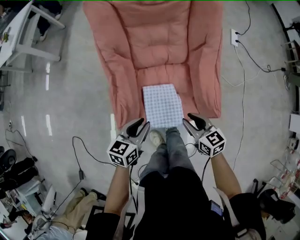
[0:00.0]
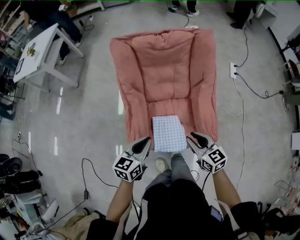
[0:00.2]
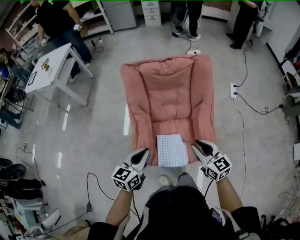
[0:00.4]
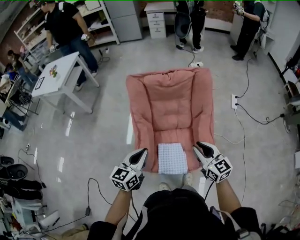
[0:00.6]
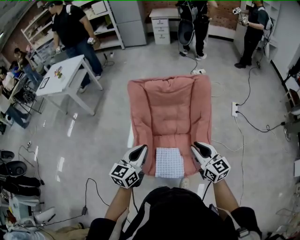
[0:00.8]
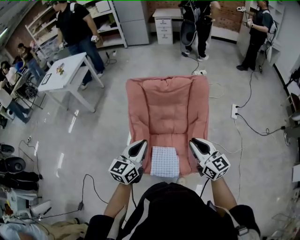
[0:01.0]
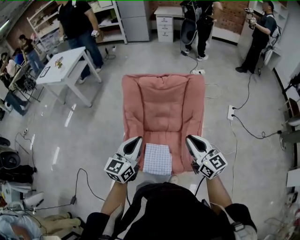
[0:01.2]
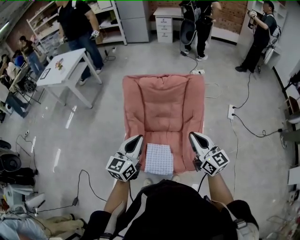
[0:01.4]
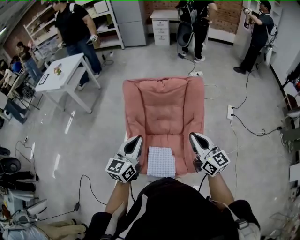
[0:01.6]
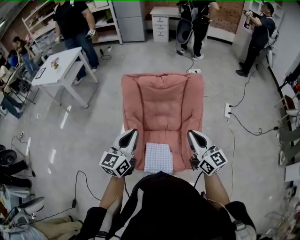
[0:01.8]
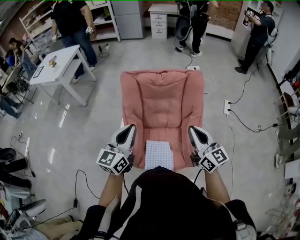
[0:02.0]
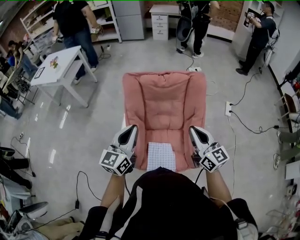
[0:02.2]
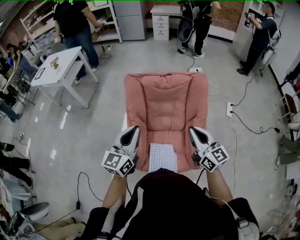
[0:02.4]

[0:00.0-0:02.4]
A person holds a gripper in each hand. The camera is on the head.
0:00.0 to 0:01.2: Both grippers move upward, approximately 30 cm. The right gripper tilts its fingers some 30 degrees upward. The left gripper swivels some 40 degrees.
0:01.2 to 0:02.4: The left gripper travels to the left by about 5 cm. Meanwhile the right gripper shifts by approximately 5 cm.

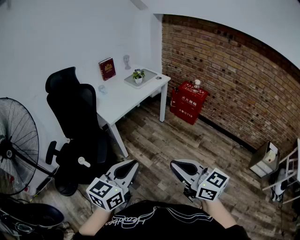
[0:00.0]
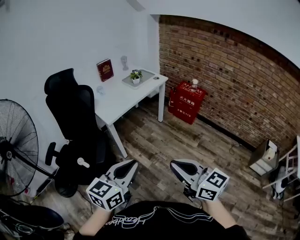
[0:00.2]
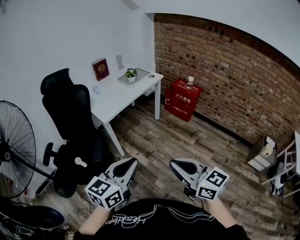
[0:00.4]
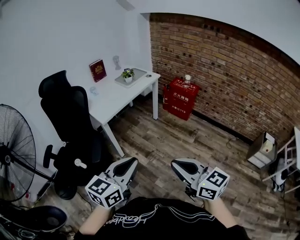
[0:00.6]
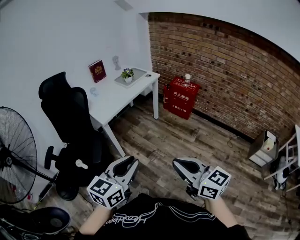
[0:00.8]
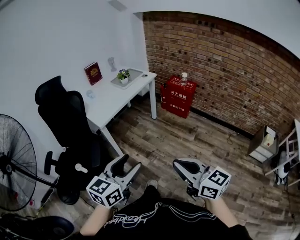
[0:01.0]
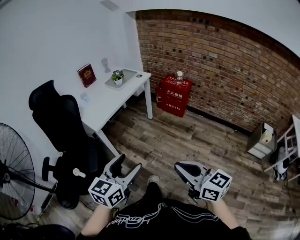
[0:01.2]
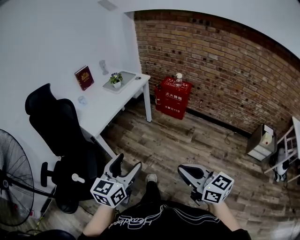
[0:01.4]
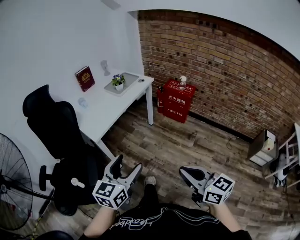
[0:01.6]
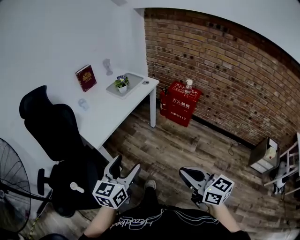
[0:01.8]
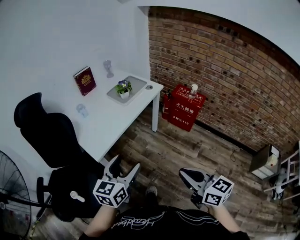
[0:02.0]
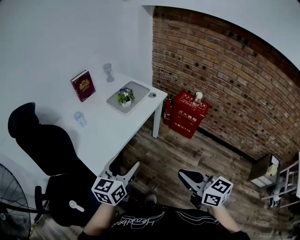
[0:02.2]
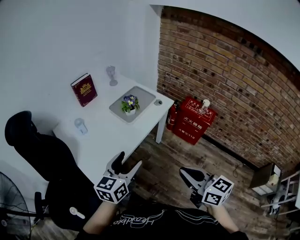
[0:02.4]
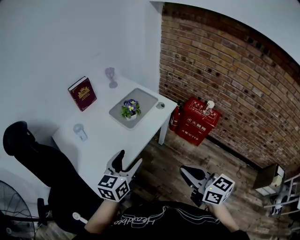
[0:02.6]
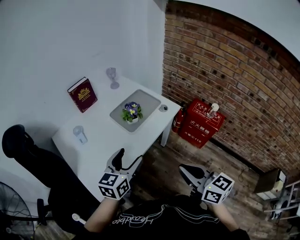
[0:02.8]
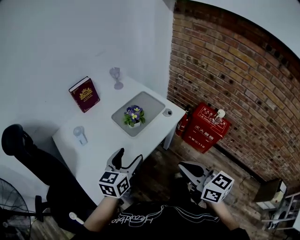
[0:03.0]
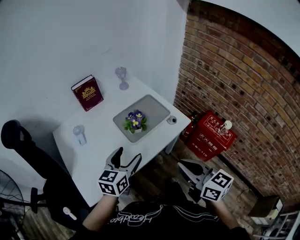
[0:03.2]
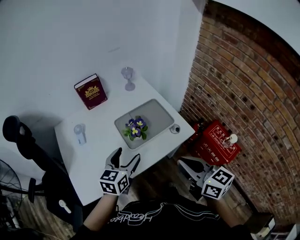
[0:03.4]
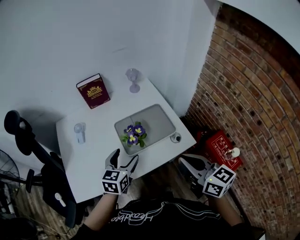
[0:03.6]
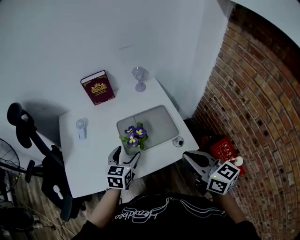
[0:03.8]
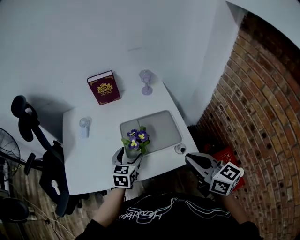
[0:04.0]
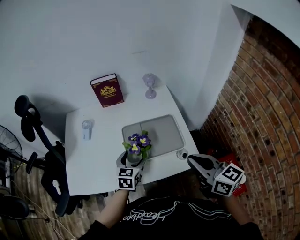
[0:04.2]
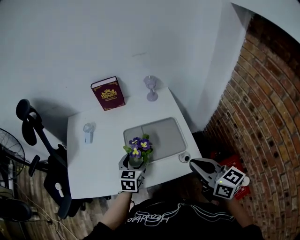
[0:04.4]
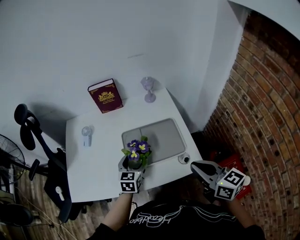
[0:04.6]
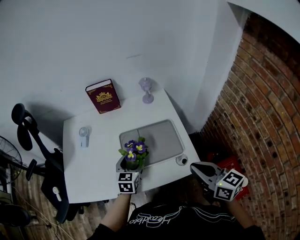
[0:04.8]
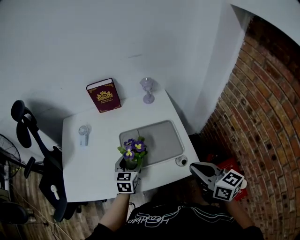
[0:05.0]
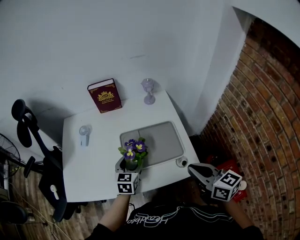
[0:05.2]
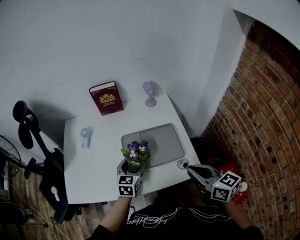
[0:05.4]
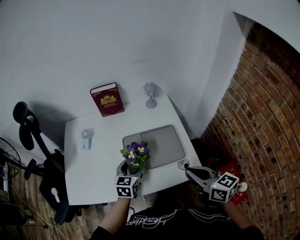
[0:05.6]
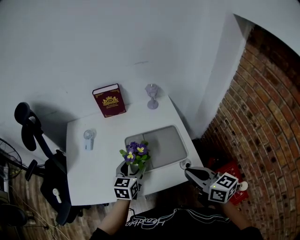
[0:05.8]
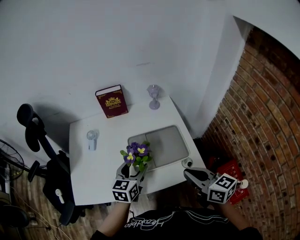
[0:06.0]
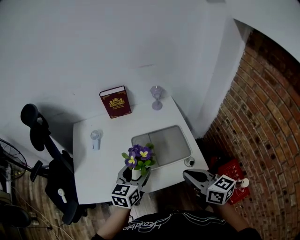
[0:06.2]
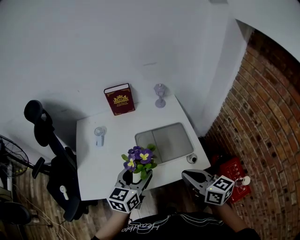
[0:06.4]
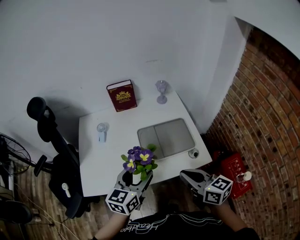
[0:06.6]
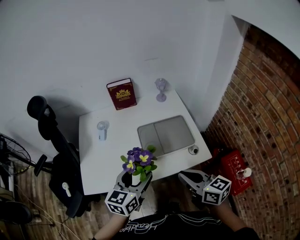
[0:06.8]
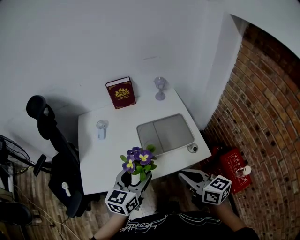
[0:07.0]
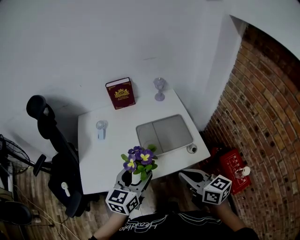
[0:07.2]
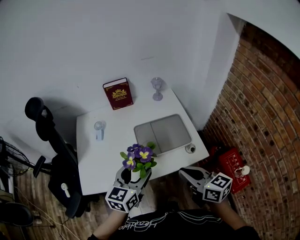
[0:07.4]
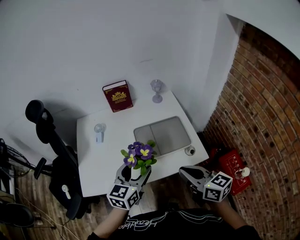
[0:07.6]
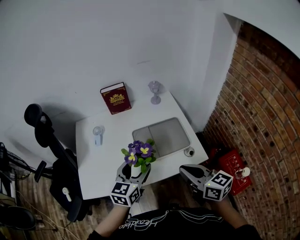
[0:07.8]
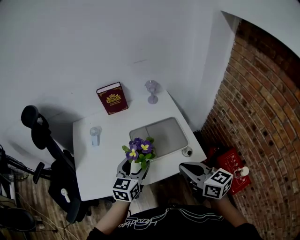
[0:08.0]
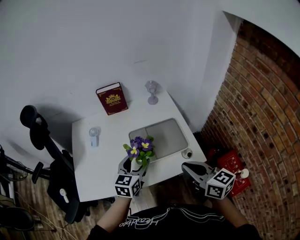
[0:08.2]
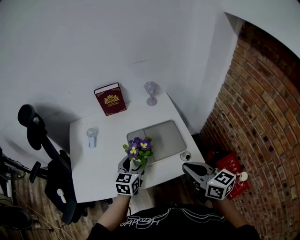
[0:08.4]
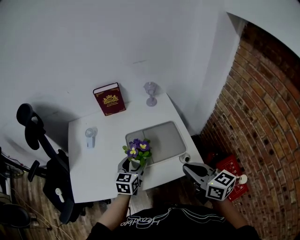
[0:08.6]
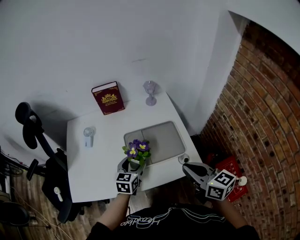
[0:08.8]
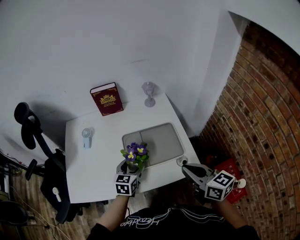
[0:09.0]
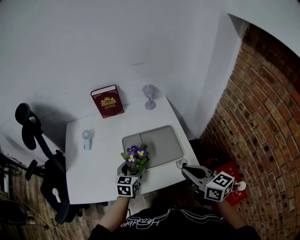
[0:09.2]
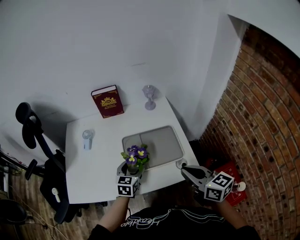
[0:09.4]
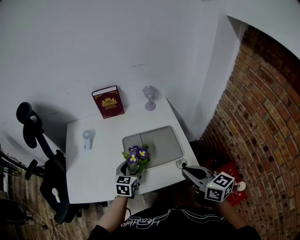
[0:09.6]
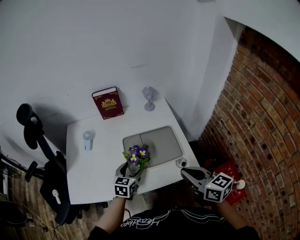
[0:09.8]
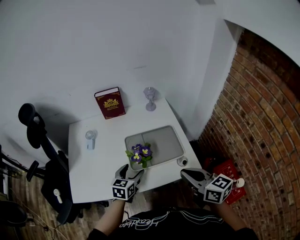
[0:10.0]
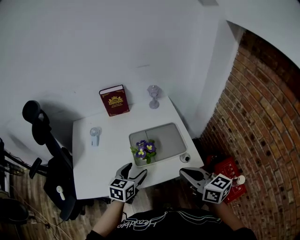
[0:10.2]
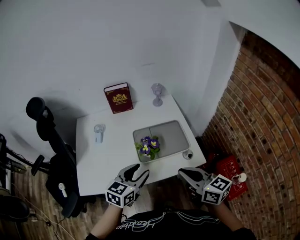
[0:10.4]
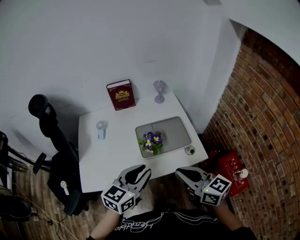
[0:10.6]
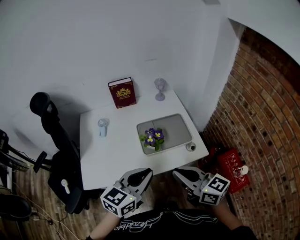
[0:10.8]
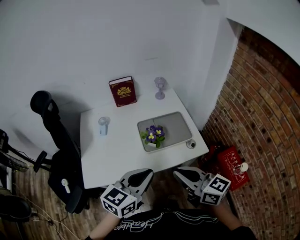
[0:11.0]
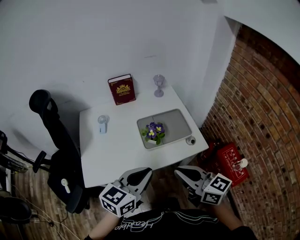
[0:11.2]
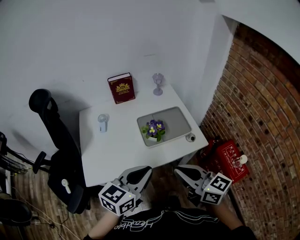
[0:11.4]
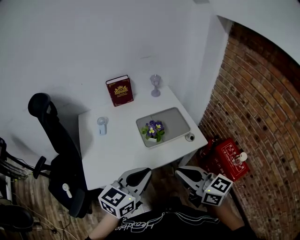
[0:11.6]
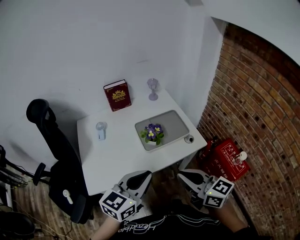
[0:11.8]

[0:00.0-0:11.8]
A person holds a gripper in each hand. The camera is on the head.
0:00.0 to 0:01.4: The right gripper is displaced to the right and downward by roughly 10 cm, while the left gripper heads forward, covering some 10 cm, and opens.
0:01.4 to 0:03.0: Both grippers are carried forward, some 60 cm.
0:03.0 to 0:04.4: The left gripper changes place by some 25 cm, and changes its angle by some 40 degrees, while the right gripper moves about 30 cm, and swivels approximately 30 degrees.
0:04.4 to 0:06.0: The left gripper goes roughly 10 cm upward.
0:06.0 to 0:07.4: The left gripper goes some 15 cm backward and upward. The right gripper goes about 10 cm to the left and backward.
0:07.4 to 0:08.8: The right gripper heads to the right and forward, covering some 10 cm. Meanwhile the left gripper shifts roughly 20 cm downward and forward.
0:08.8 to 0:10.4: The right gripper travels to the left and backward by roughly 10 cm; the left gripper is displaced upward and backward by some 15 cm.
0:10.4 to 0:11.8: The left gripper travels backward and upward by some 15 cm, and closes. The right gripper moves backward and to the left, about 10 cm.

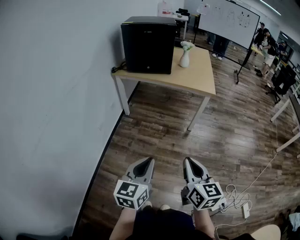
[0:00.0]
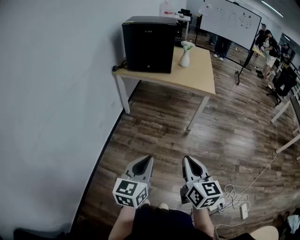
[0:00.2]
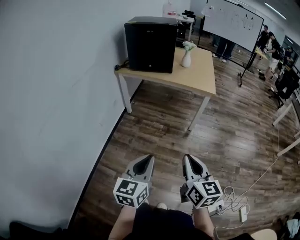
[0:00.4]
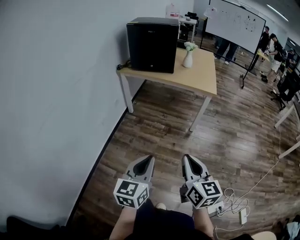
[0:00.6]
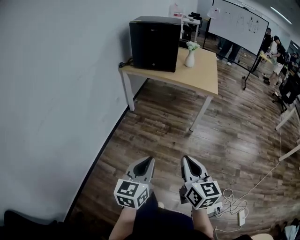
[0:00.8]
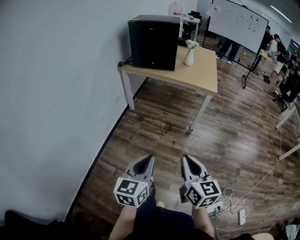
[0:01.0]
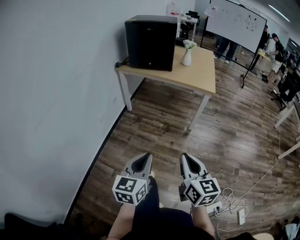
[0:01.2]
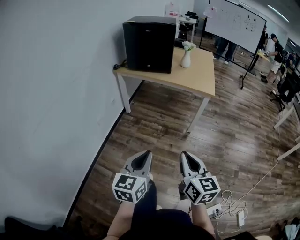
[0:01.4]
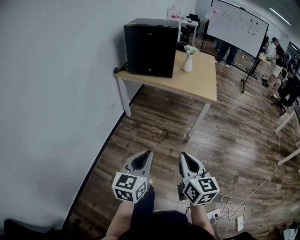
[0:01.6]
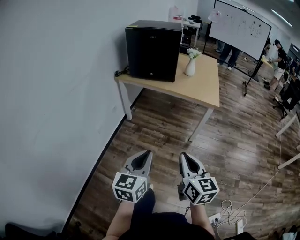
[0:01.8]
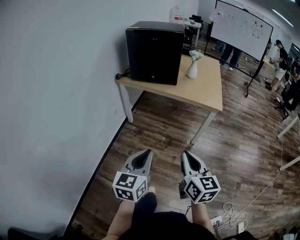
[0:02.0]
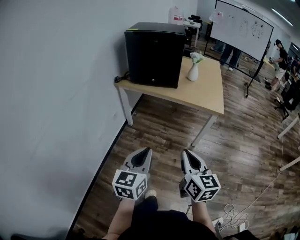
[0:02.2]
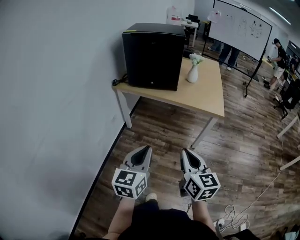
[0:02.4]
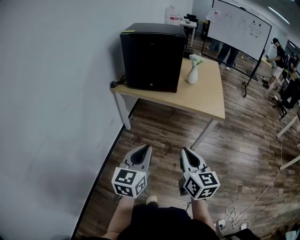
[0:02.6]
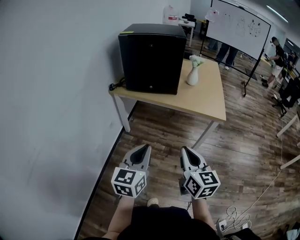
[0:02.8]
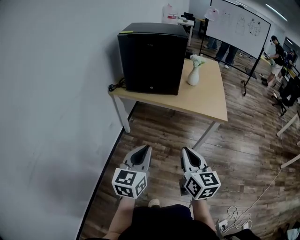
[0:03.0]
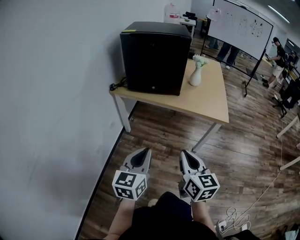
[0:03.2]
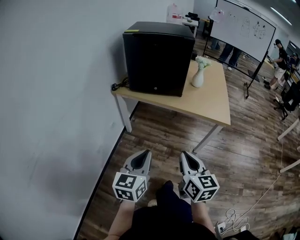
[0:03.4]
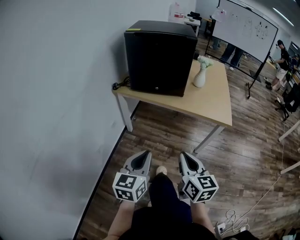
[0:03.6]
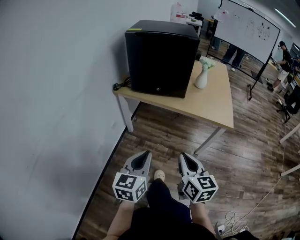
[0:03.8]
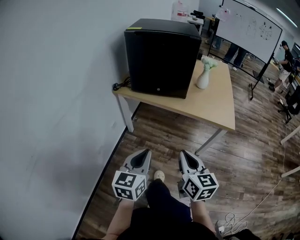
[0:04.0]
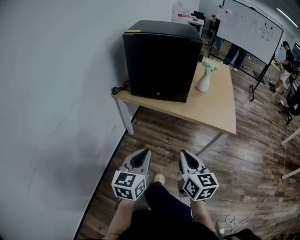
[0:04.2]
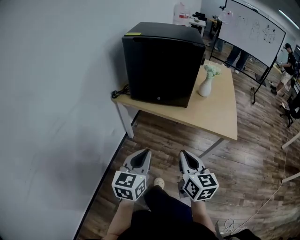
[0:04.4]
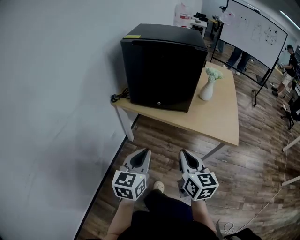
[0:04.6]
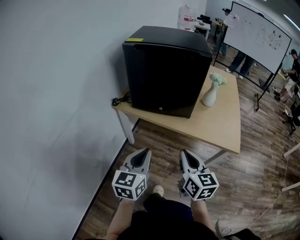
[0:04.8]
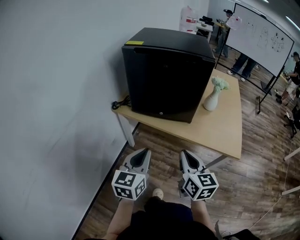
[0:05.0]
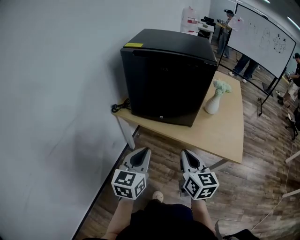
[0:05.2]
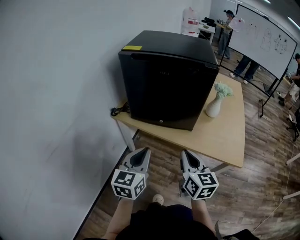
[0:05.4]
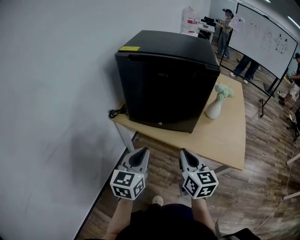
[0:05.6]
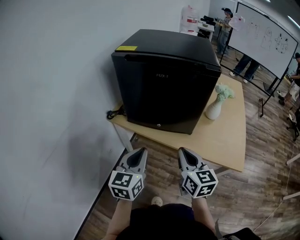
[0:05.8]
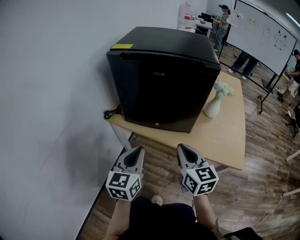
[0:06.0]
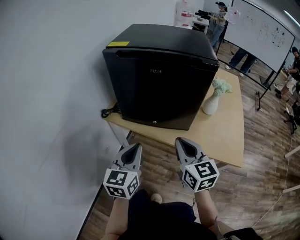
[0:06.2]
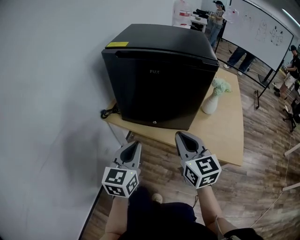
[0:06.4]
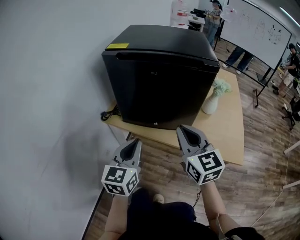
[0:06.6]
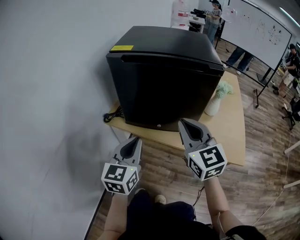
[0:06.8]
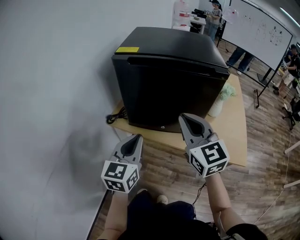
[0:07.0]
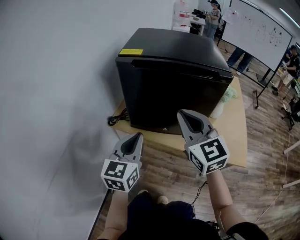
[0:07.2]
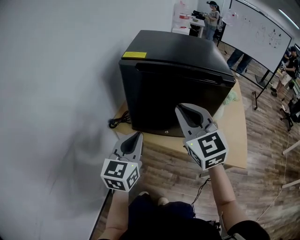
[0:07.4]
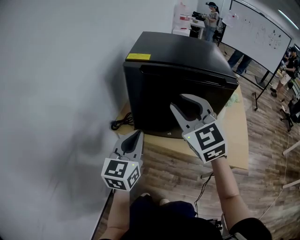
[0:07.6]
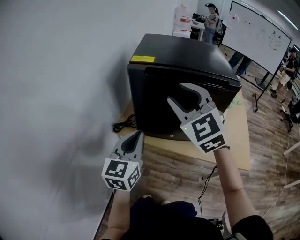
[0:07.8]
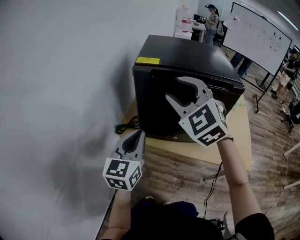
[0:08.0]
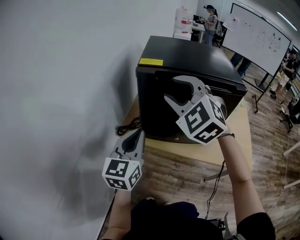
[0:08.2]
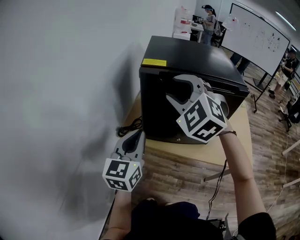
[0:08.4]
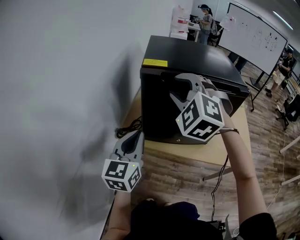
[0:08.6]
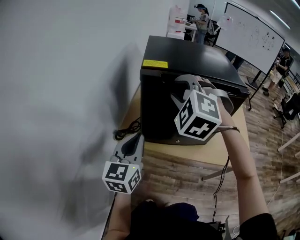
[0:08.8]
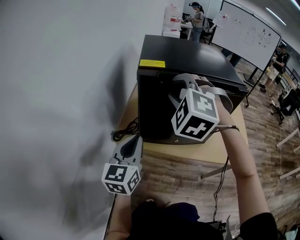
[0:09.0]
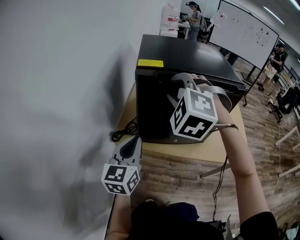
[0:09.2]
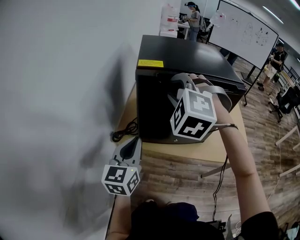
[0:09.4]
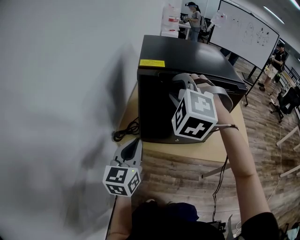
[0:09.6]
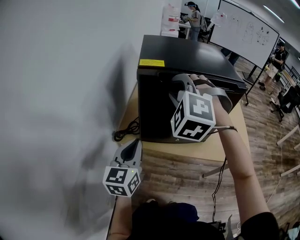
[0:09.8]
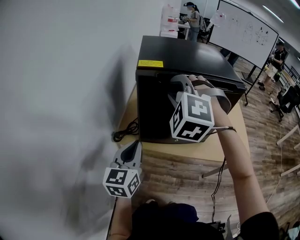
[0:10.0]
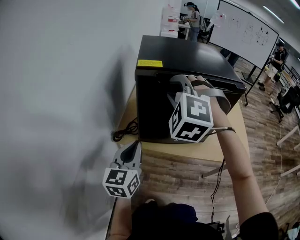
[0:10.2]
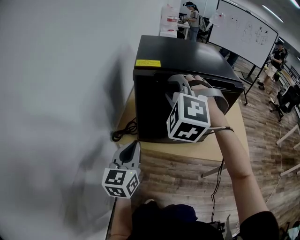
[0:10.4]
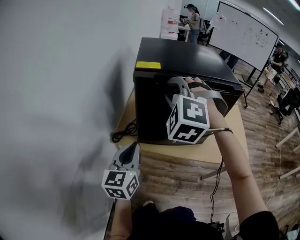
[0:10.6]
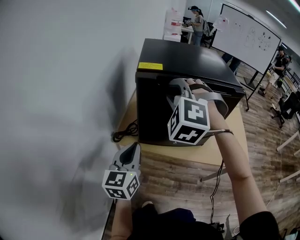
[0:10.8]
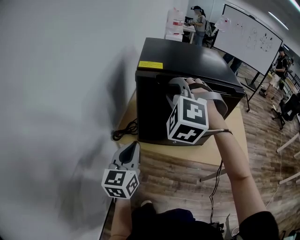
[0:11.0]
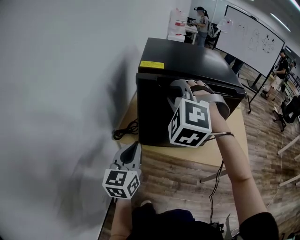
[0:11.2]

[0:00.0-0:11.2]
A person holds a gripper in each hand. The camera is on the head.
0:00.0 to 0:01.6: The right gripper shifts by roughly 5 cm, while the left gripper shifts approximately 5 cm to the right.
0:01.6 to 0:03.2: The grippers both shift forward by approximately 25 cm.
0:03.2 to 0:04.8: The grippers both shift forward by about 20 cm.
0:04.8 to 0:06.4: Both grippers move forward, some 15 cm.
0:06.4 to 0:08.0: The left gripper travels to the left, forward and upward by some 15 cm. The right gripper heads upward, to the left and forward, covering some 30 cm, rolls counterclockwise, seen from behind, by about 50 degrees, and opens its fingers.
0:08.0 to 0:09.6: The right gripper changes place by some 5 cm, and turns by about 40 degrees; the left gripper ends up roughly 5 cm from where it was.
0:09.6 to 0:11.2: The grippers move only a little.
